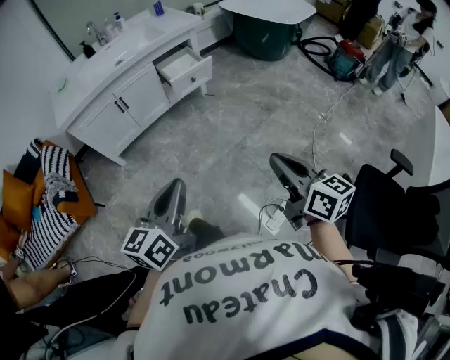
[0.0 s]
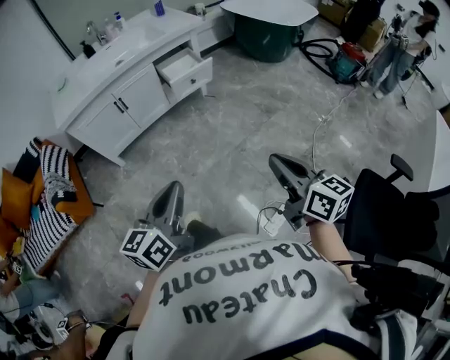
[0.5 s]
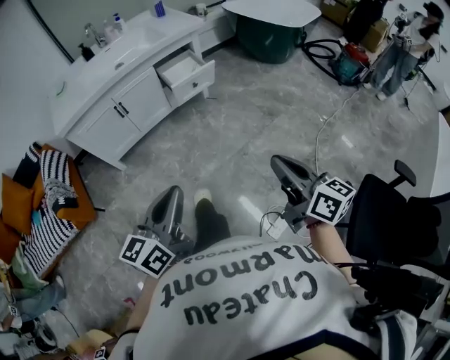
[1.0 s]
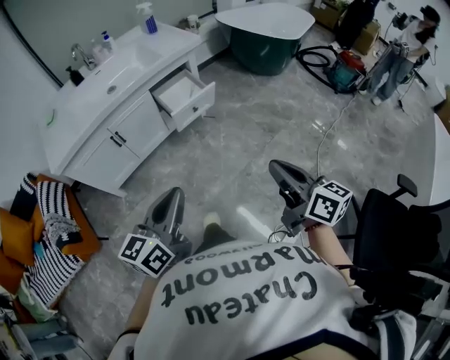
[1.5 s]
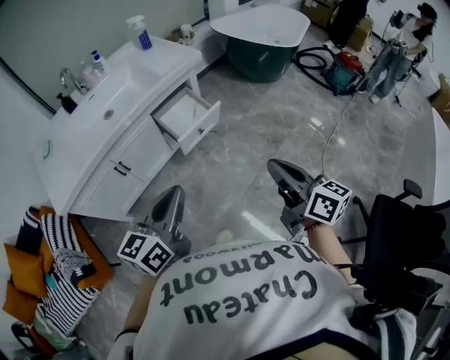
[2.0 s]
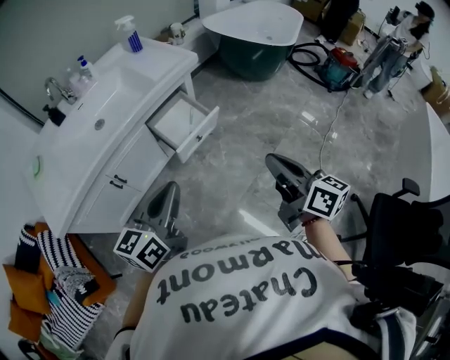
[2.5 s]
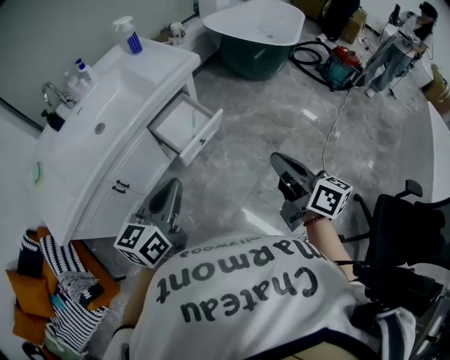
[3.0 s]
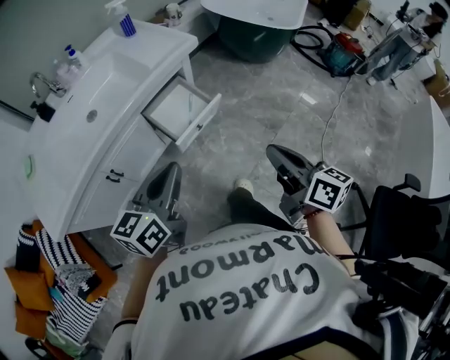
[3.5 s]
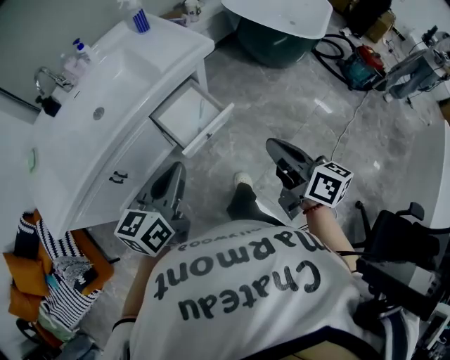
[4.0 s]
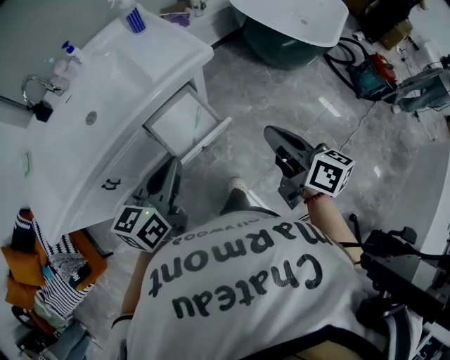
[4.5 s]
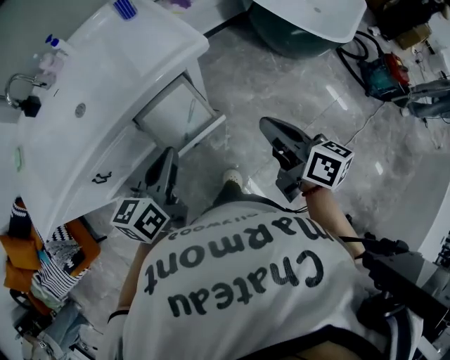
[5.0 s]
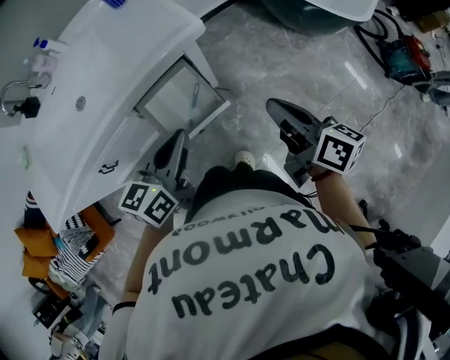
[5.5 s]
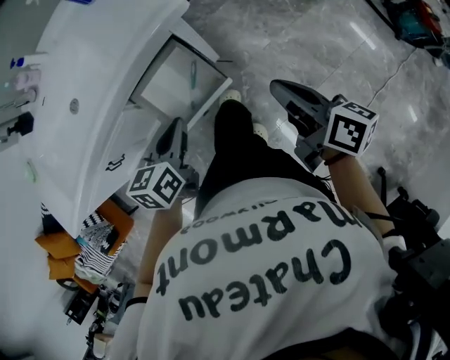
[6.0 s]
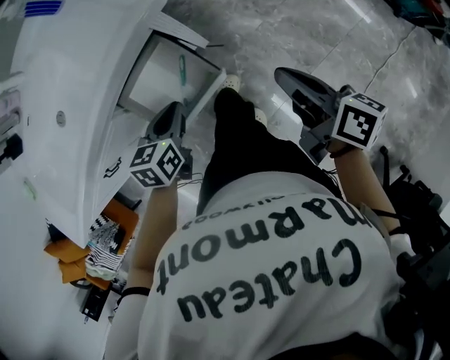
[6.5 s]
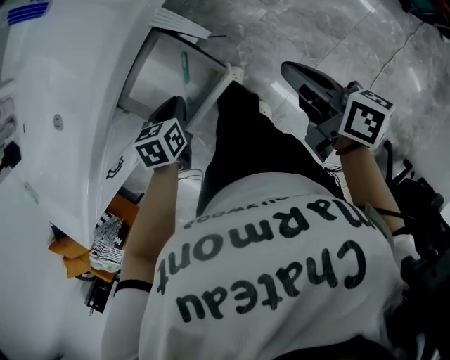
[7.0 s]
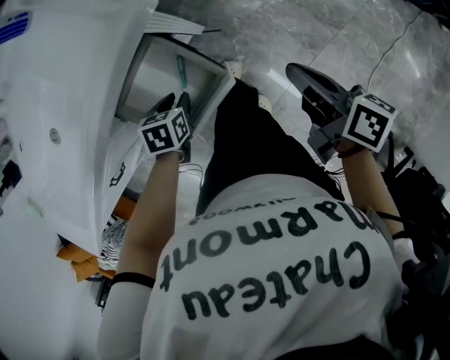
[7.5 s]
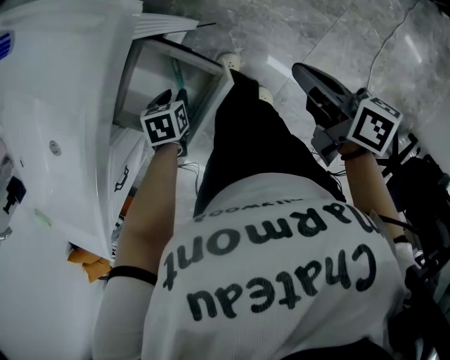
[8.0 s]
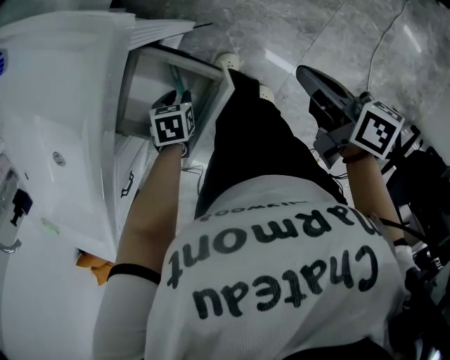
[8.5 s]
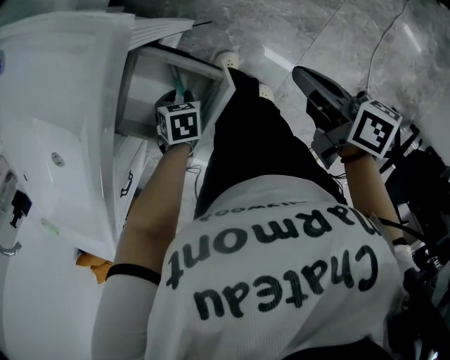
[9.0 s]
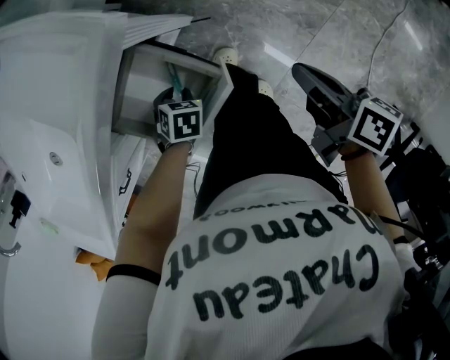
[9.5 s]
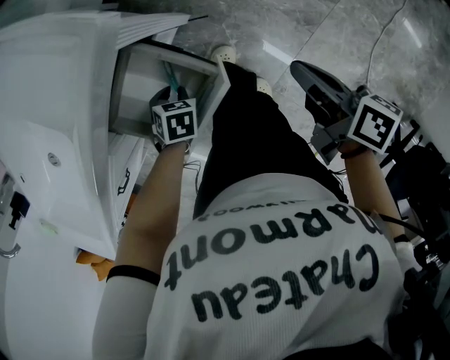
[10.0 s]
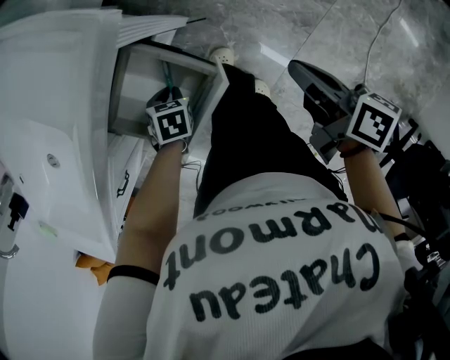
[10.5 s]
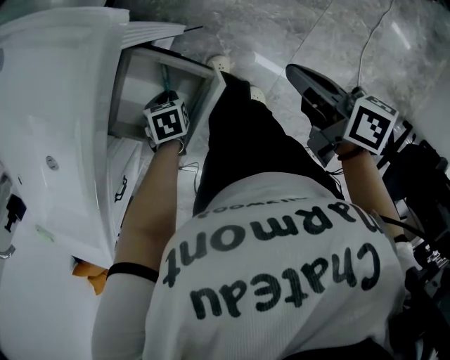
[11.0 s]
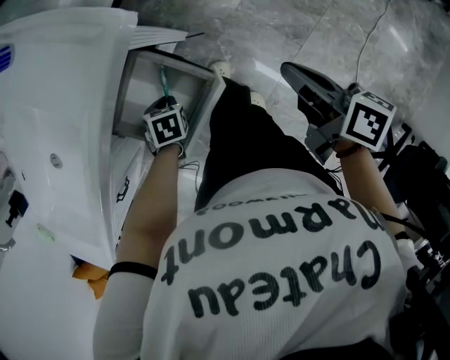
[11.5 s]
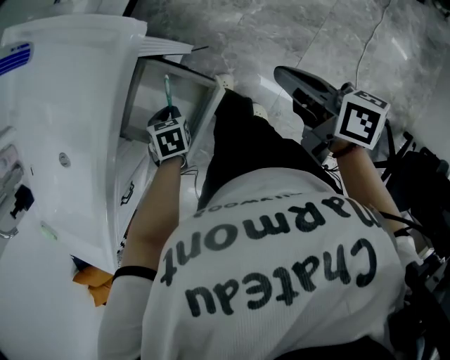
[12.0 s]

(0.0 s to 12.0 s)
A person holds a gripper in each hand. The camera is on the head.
0.0 s - 2.0 s: Both grippers move forward, about 30 cm.
2.0 s - 4.0 s: Both grippers travel together forward, approximately 20 cm.
4.0 s - 6.0 s: Both grippers move forward, downward and to the right, some 25 cm. The left gripper swivels about 30 degrees.
6.0 s - 8.0 s: The left gripper moves downward, about 25 cm, tips its fingers downward by some 40 degrees, and opens its fingers. The right gripper heads downward, covering about 10 cm, and changes its angle by about 20 degrees.
10.0 s - 12.0 s: Both grippers move upward, some 5 cm.

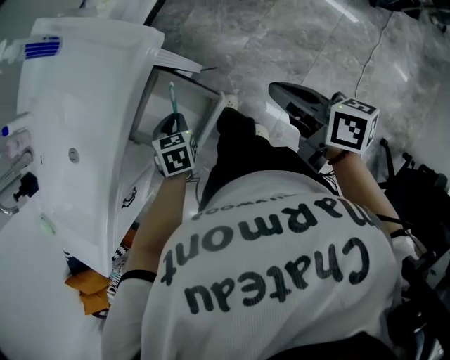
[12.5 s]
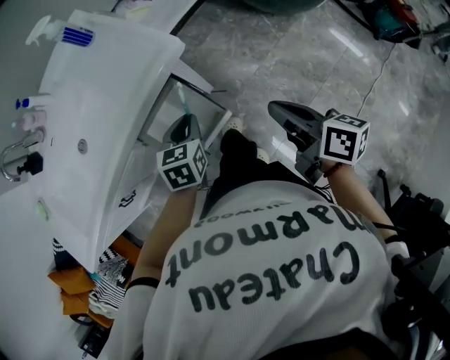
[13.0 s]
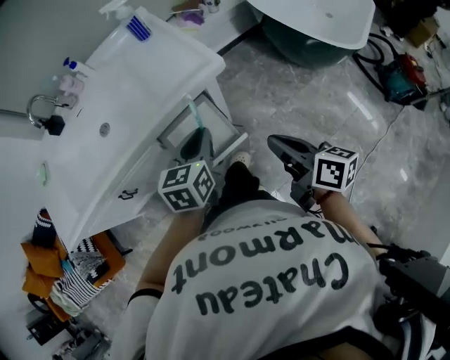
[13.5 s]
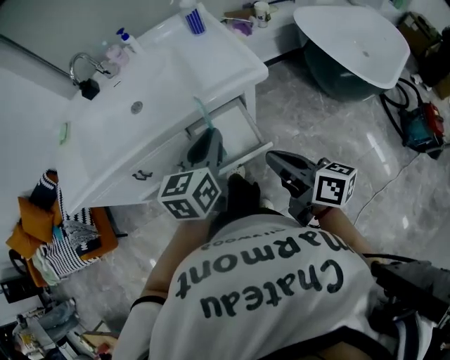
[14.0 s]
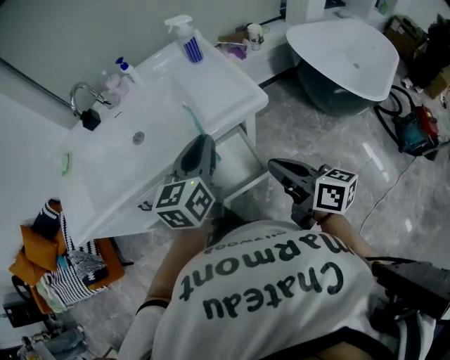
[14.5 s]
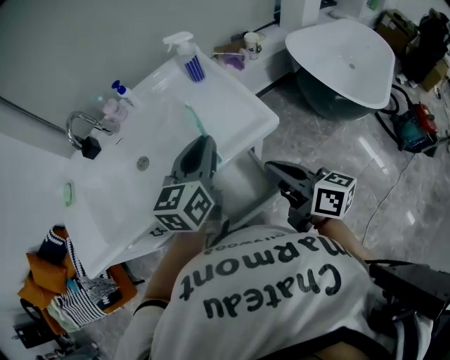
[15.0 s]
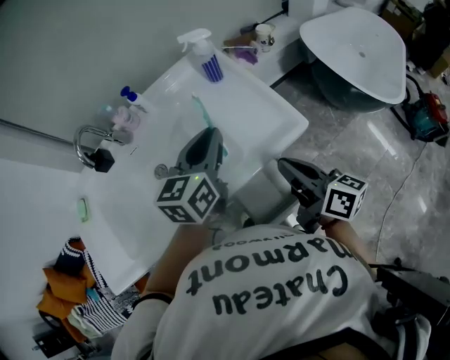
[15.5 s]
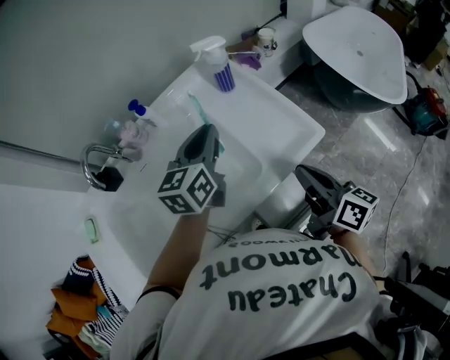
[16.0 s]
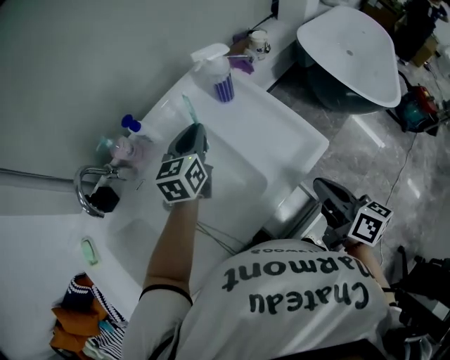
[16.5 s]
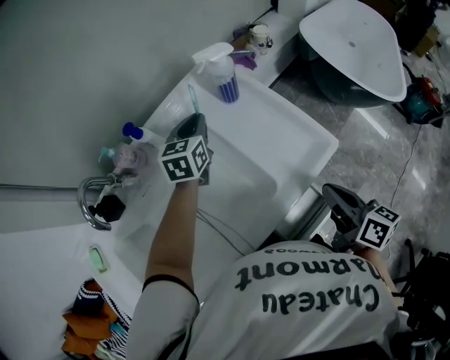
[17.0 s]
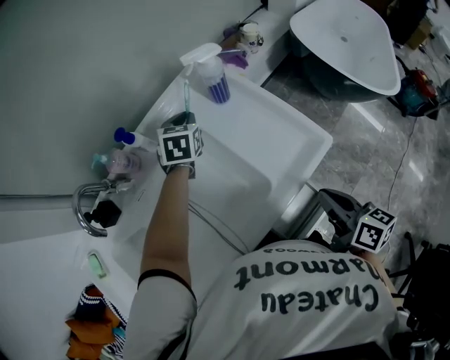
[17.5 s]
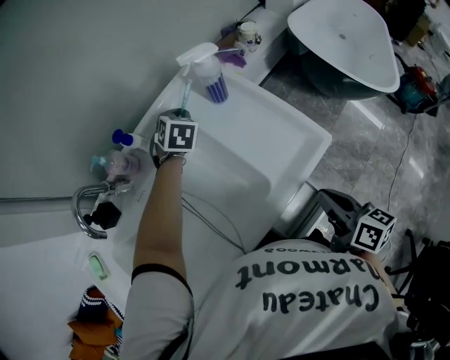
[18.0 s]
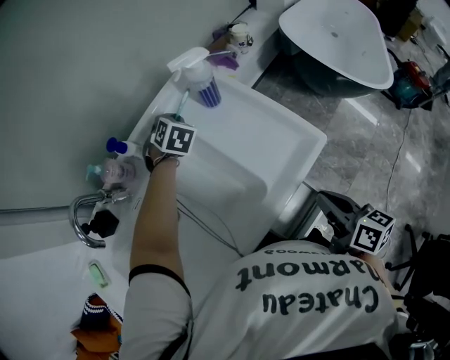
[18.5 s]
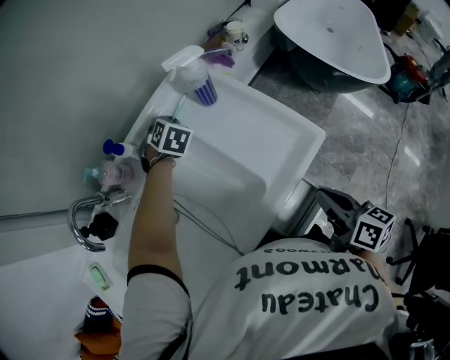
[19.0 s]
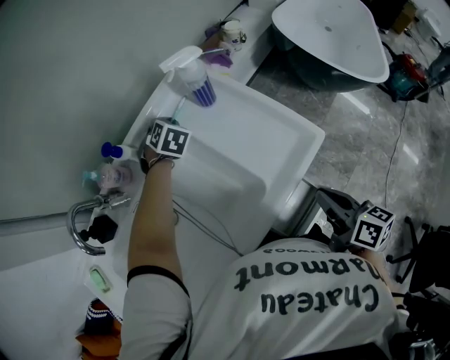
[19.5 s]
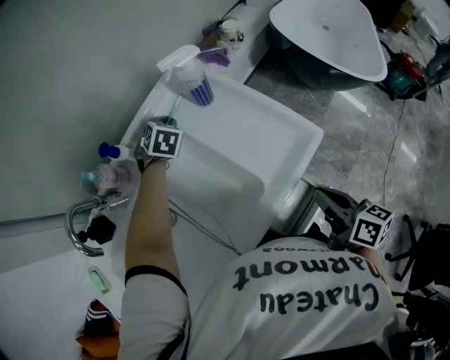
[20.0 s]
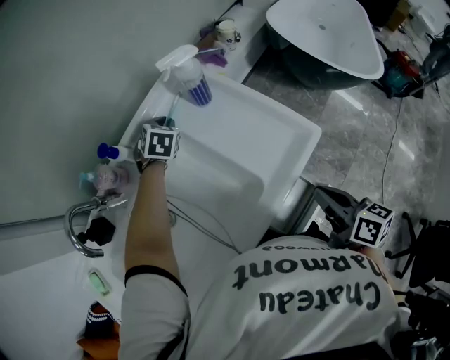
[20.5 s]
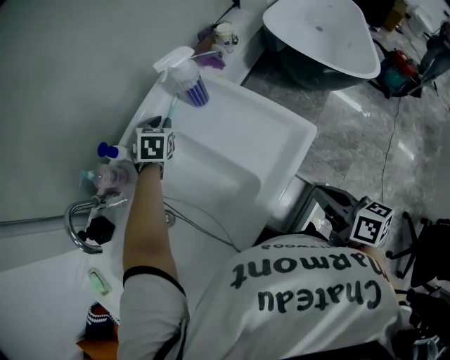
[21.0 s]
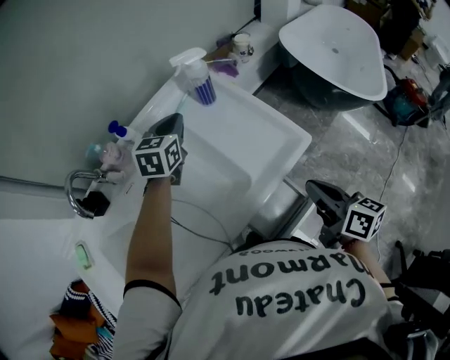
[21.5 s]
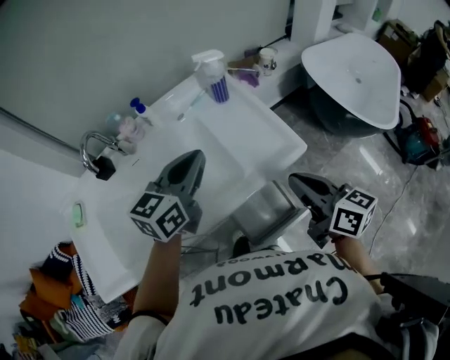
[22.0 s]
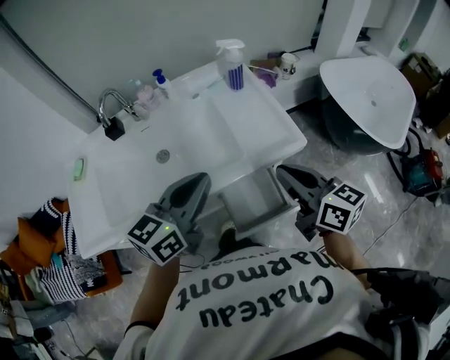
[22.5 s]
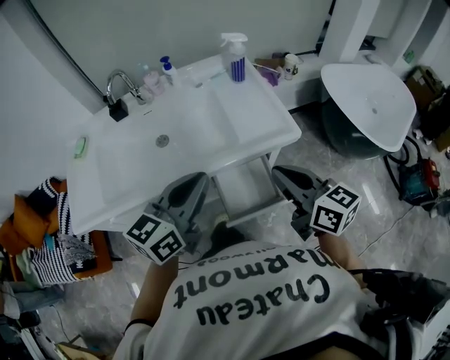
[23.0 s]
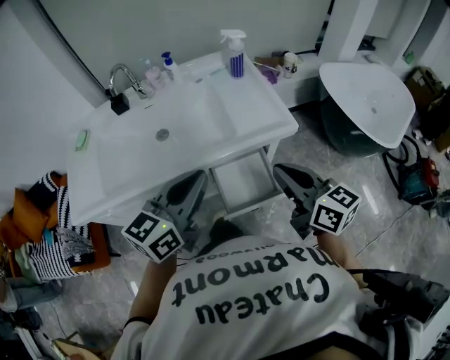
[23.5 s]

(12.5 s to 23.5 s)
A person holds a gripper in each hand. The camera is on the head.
12.5 s - 14.5 s: The right gripper goes about 20 cm to the left and upward, and turns by some 30 degrees; the left gripper shifts approximately 35 cm upward, and points its fingers approximately 50 degrees further upward.
14.5 s - 16.0 s: The left gripper is displaced forward by roughly 25 cm, while the right gripper moves forward and to the left, some 20 cm, and rotates roughly 20 degrees.
16.0 s - 18.0 s: The left gripper moves forward and downward, some 25 cm, and points its fingers roughly 30 degrees further downward.
18.0 s - 20.0 s: There are only small adjustments of the grippers.
20.0 s - 21.5 s: The left gripper shifts some 15 cm upward and backward, and swivels roughly 40 degrees.
21.5 s - 23.5 s: The right gripper moves backward and upward, roughly 15 cm, and turns by roughly 40 degrees; the left gripper goes some 50 cm backward, and turns by approximately 30 degrees.

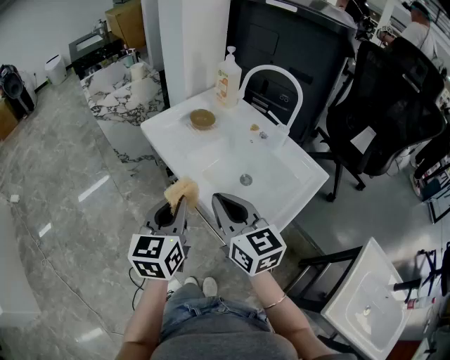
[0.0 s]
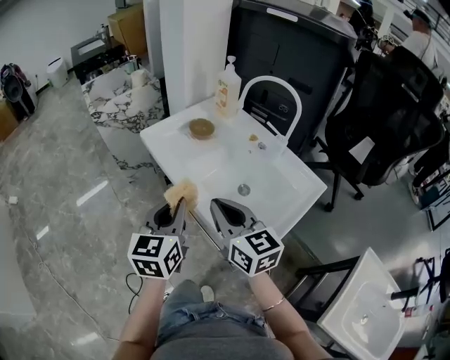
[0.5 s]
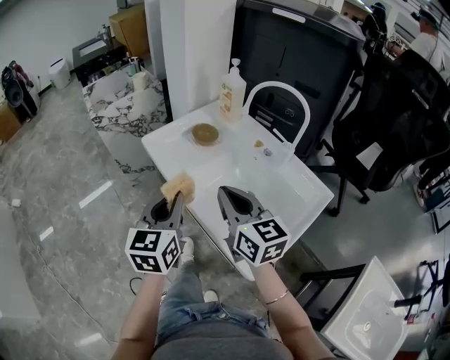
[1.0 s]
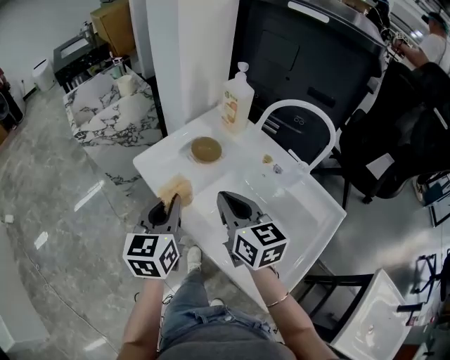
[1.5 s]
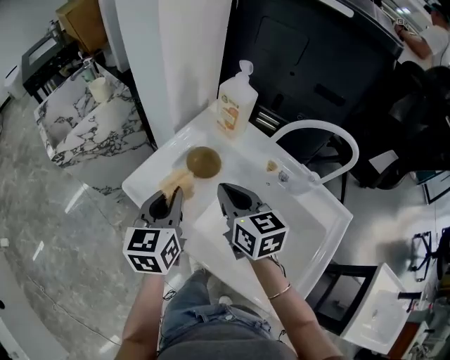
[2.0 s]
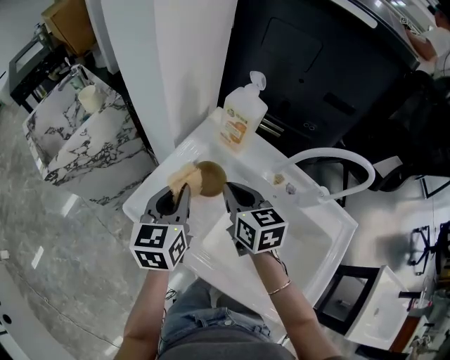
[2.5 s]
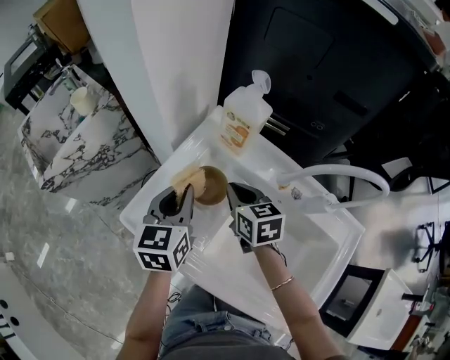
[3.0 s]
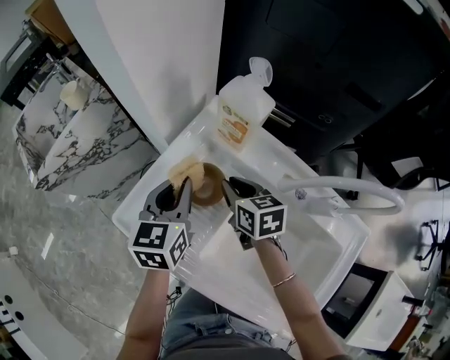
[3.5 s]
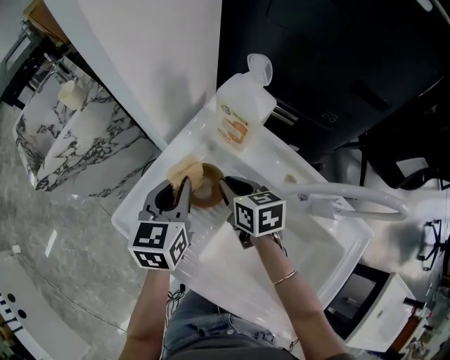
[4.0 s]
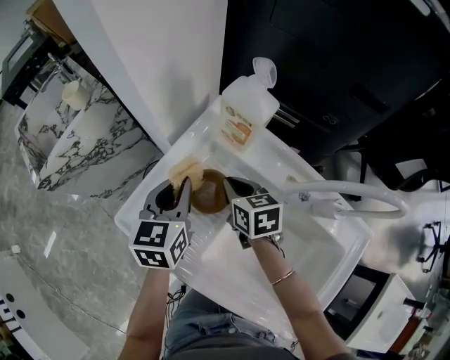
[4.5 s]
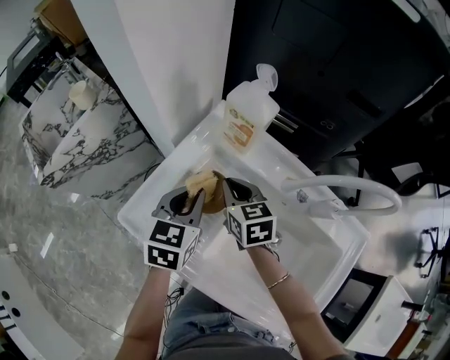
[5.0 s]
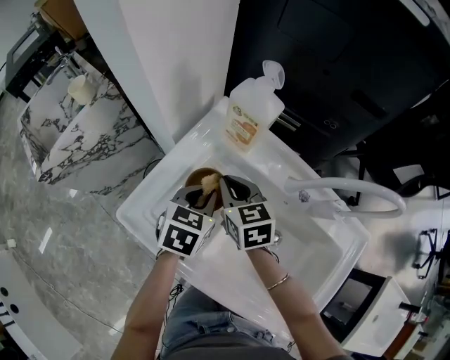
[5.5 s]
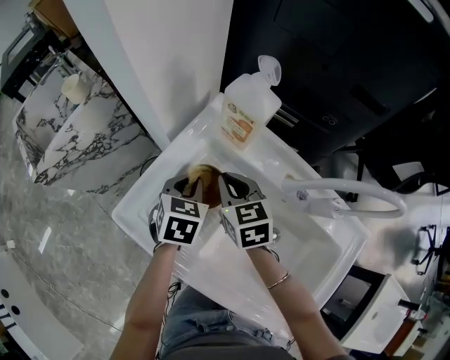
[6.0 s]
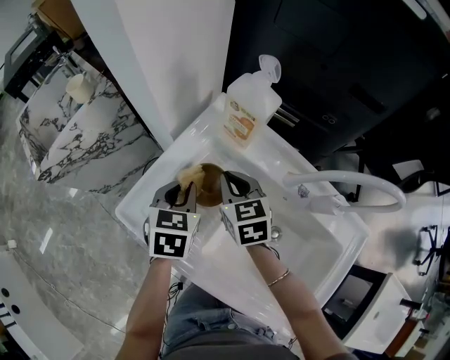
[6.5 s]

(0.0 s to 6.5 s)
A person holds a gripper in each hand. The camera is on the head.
0.0 s - 2.0 s: The two grippers go approximately 35 cm forward.
2.0 s - 4.5 s: The right gripper goes approximately 20 cm downward and forward, and rotates about 20 degrees. Meanwhile the left gripper shifts about 15 cm forward and downward.
